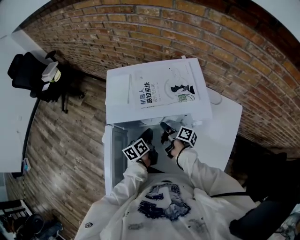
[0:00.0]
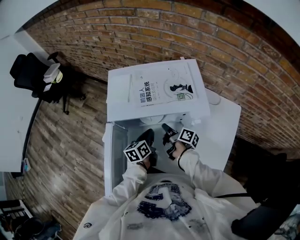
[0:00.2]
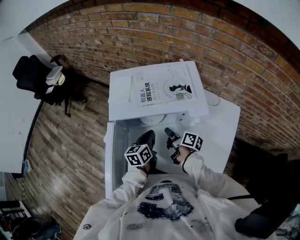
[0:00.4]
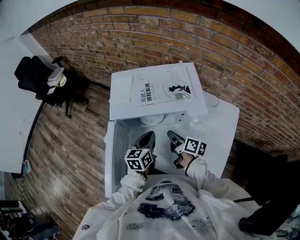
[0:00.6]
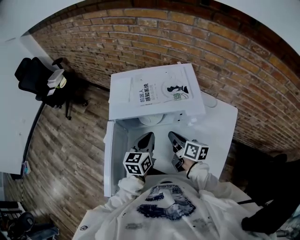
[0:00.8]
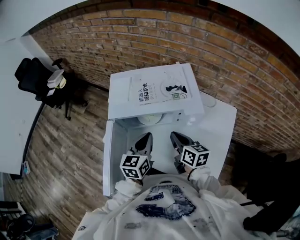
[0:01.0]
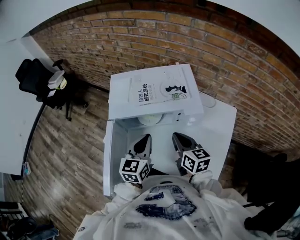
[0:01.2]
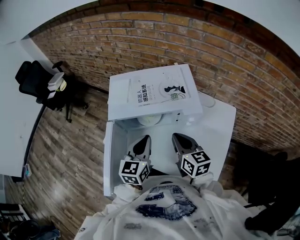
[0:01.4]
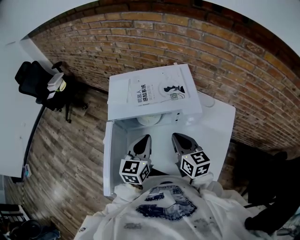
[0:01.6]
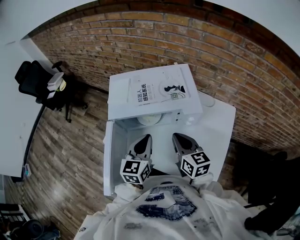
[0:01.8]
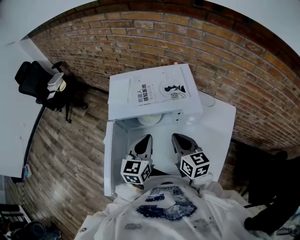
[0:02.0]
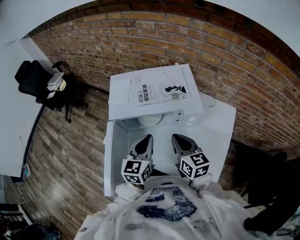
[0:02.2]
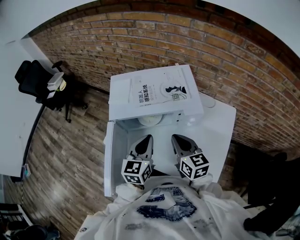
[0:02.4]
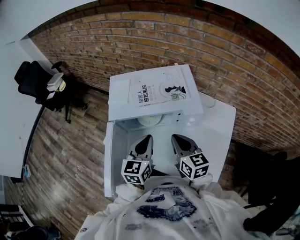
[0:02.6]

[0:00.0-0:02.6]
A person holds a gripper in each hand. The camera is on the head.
0:00.0 to 0:01.2: The left gripper shifts some 20 cm upward, and rotates around the line of its fingers by approximately 40 degrees, clockwise from behind.

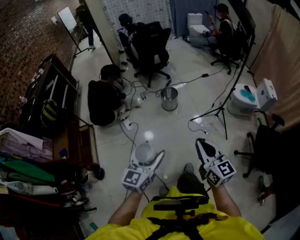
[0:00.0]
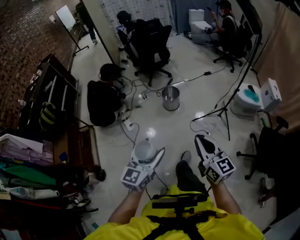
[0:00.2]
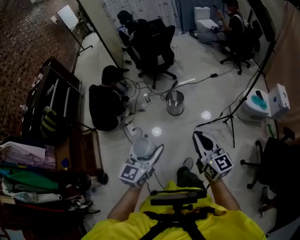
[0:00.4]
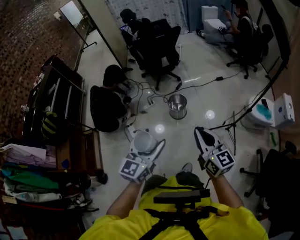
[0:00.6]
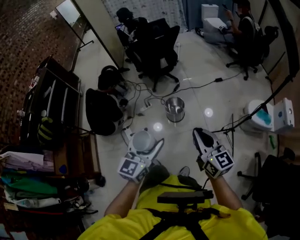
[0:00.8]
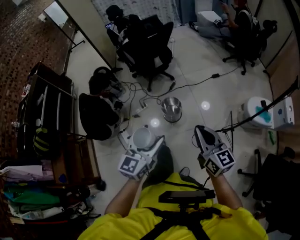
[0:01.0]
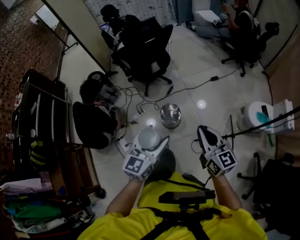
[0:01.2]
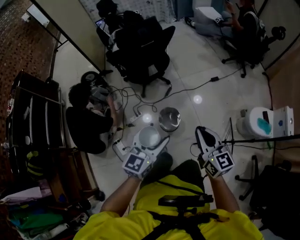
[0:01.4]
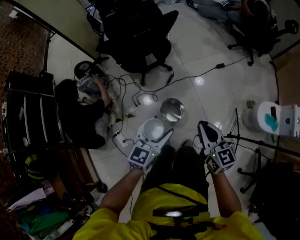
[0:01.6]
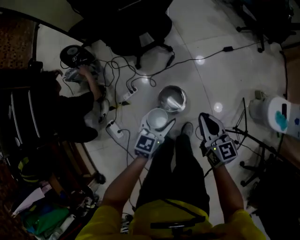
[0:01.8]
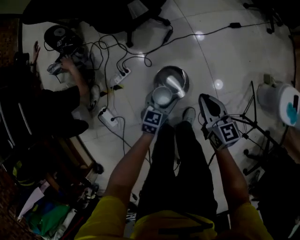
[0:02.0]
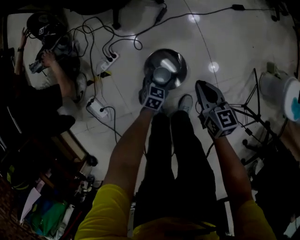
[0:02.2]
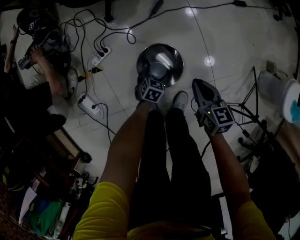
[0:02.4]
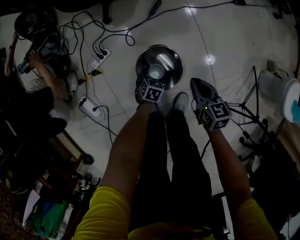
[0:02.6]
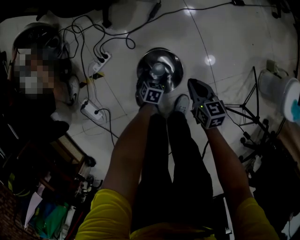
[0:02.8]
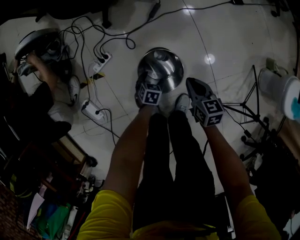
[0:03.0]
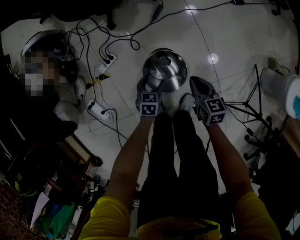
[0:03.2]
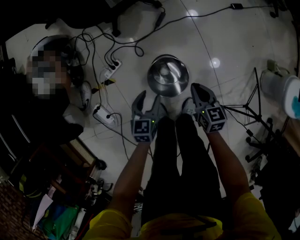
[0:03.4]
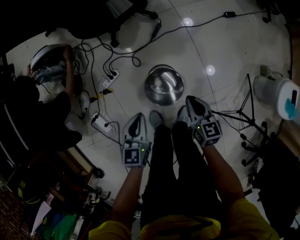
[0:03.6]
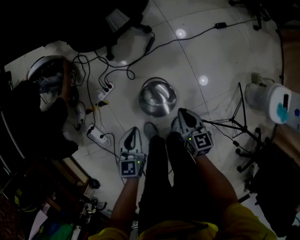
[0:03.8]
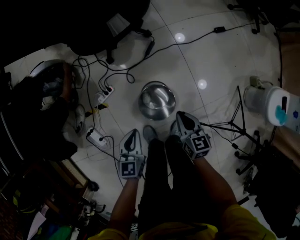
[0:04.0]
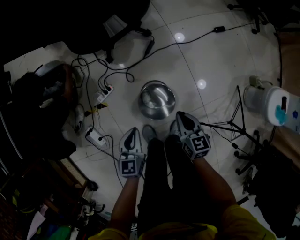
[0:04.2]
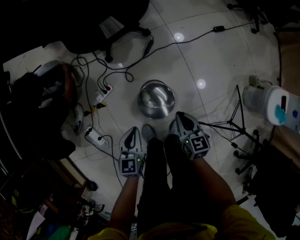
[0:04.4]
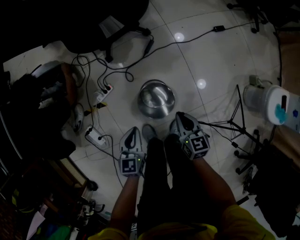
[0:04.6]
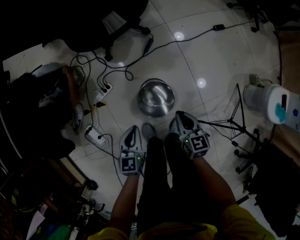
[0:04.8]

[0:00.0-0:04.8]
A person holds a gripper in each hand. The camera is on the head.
0:00.0 to 0:01.6: The two grippers travel together, forward, some 70 cm.
0:01.6 to 0:03.2: The two grippers go roughly 60 cm downward. The left gripper tips its fingers downward by some 40 degrees; the right gripper rotates about 30 degrees.
0:03.2 to 0:04.8: The right gripper moves upward, approximately 10 cm, while the left gripper moves upward, approximately 20 cm, turns by about 20 degrees, and closes up.

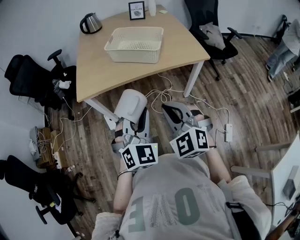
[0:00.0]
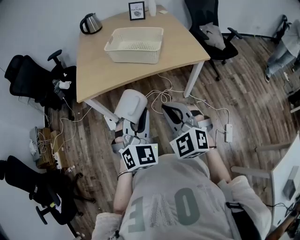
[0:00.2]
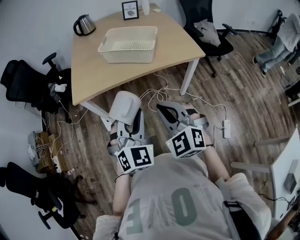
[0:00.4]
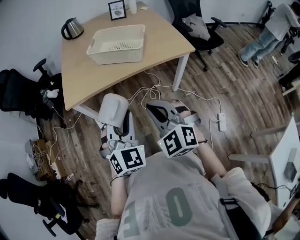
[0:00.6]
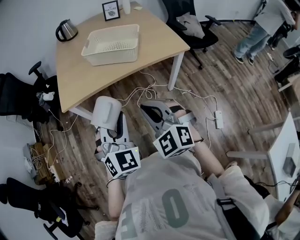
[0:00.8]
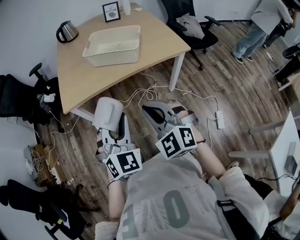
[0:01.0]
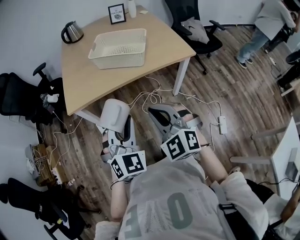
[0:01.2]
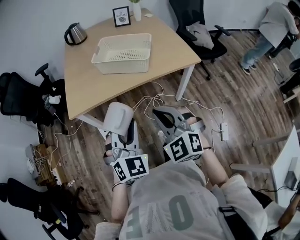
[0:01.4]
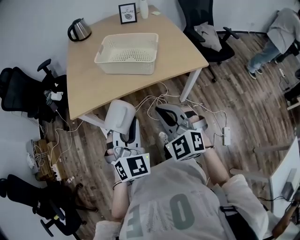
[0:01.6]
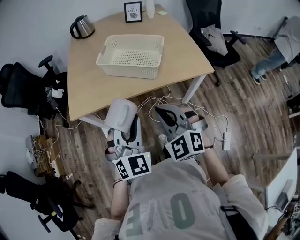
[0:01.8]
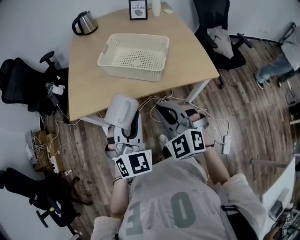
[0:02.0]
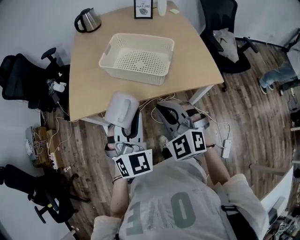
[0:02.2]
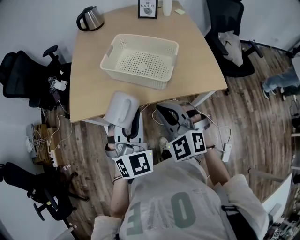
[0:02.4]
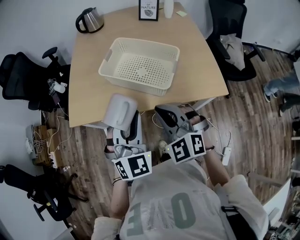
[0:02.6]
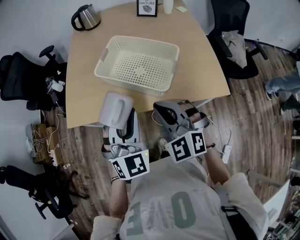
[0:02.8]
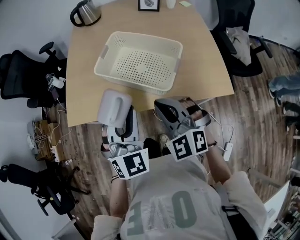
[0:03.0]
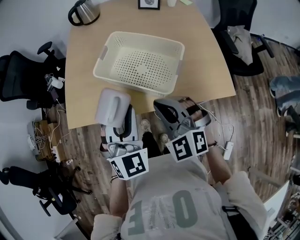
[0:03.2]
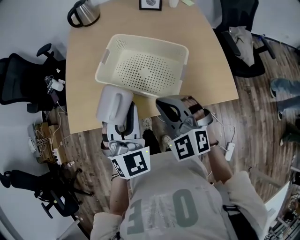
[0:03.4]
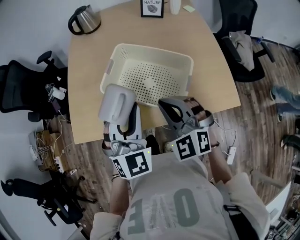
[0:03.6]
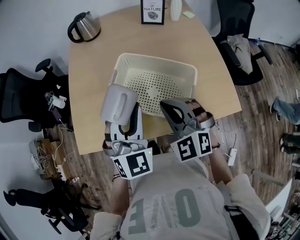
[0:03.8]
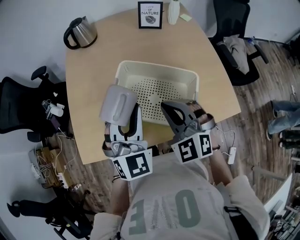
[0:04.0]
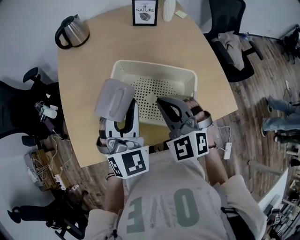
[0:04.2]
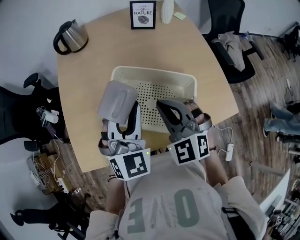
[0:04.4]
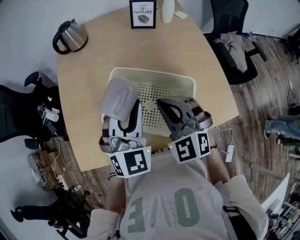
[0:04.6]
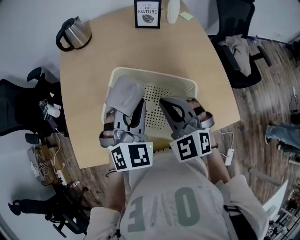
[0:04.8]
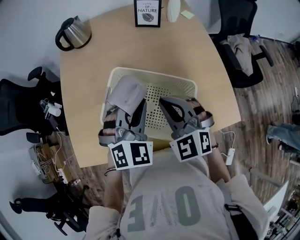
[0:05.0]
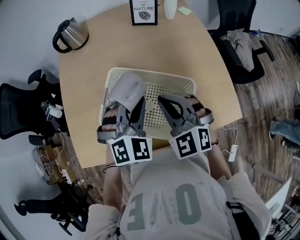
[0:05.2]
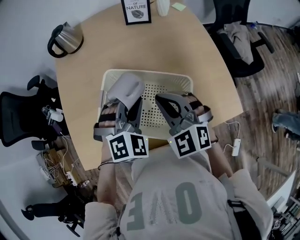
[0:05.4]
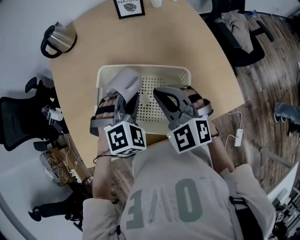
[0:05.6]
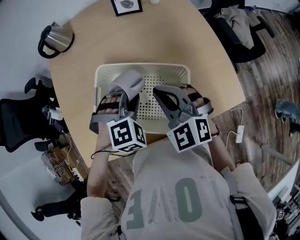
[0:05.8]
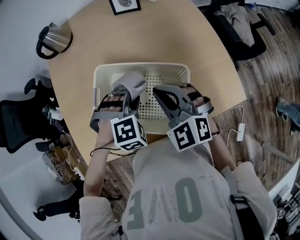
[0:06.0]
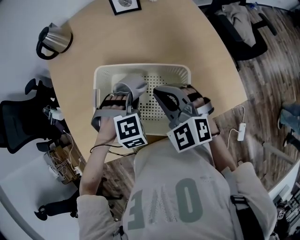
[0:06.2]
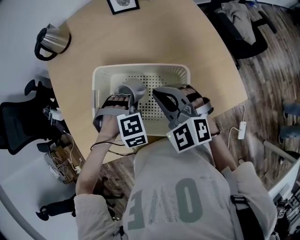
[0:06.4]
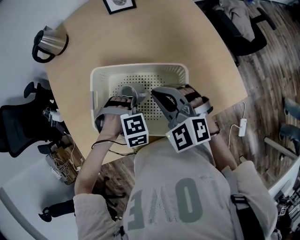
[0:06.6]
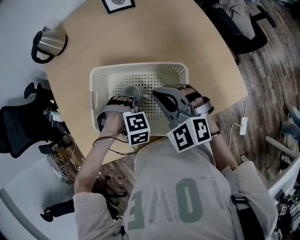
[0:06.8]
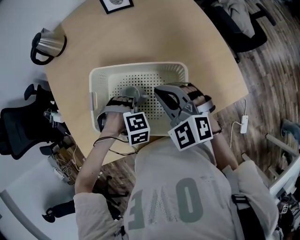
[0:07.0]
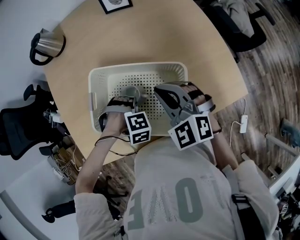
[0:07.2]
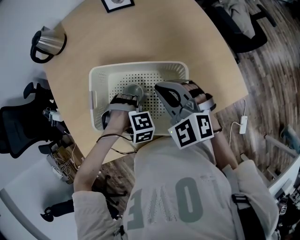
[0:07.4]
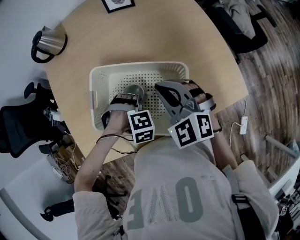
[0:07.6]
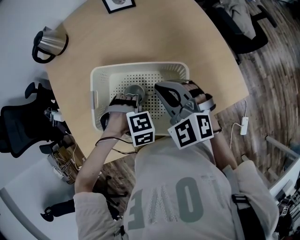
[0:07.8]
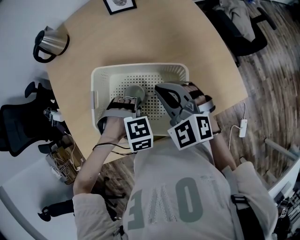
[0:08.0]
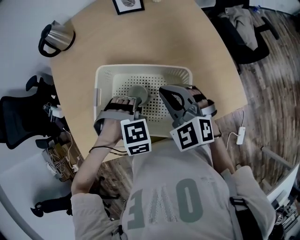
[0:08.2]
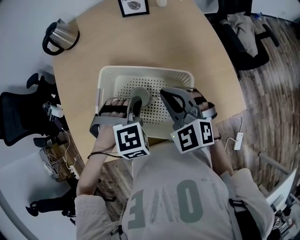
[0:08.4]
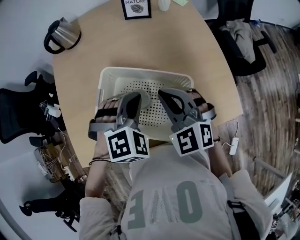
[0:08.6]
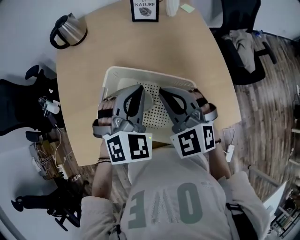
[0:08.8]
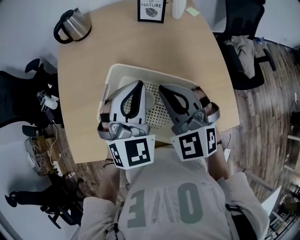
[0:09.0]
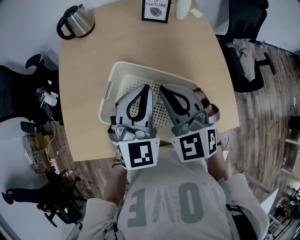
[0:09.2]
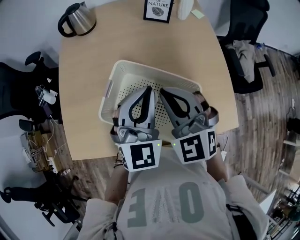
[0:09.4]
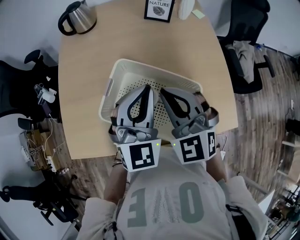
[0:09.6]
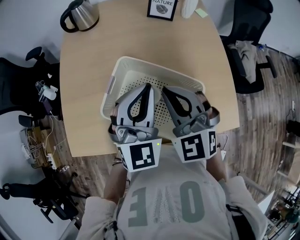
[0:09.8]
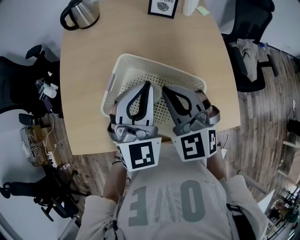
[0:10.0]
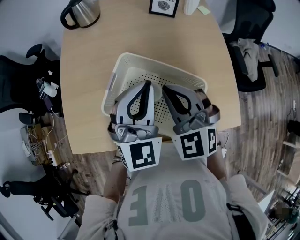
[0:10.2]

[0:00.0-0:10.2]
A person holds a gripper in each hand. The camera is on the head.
0:00.0 to 0:01.4: The grippers stay close to where they were, moving slightly.
0:01.4 to 0:03.0: The two grippers go some 30 cm forward.
0:03.0 to 0:04.4: Both grippers move forward, approximately 20 cm.
0:04.4 to 0:05.8: The left gripper moves downward and to the right, roughly 15 cm, and points its fingers roughly 40 degrees further downward. The right gripper moves to the right, approximately 5 cm.
0:05.8 to 0:07.2: The left gripper goes some 15 cm downward, and changes its angle by some 40 degrees.
0:07.2 to 0:08.8: The right gripper shifts some 5 cm upward; the left gripper moves upward, some 25 cm, and angles its fingers upward, by about 50 degrees.
0:08.8 to 0:10.2: The left gripper shifts by approximately 5 cm, and changes its angle by some 30 degrees.

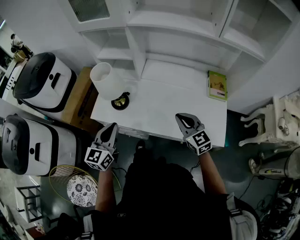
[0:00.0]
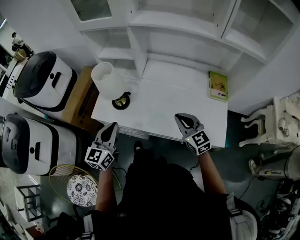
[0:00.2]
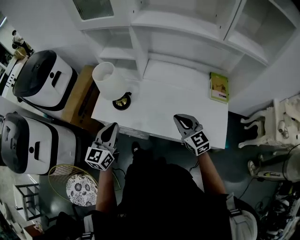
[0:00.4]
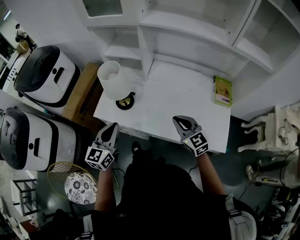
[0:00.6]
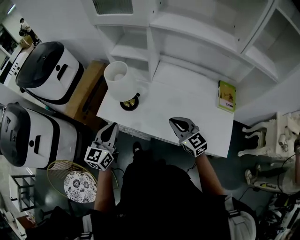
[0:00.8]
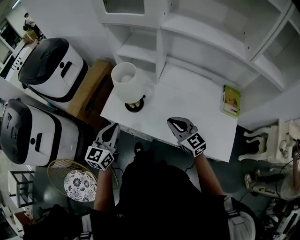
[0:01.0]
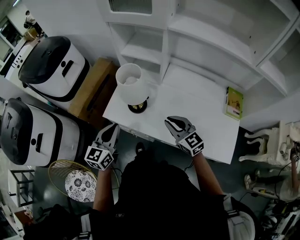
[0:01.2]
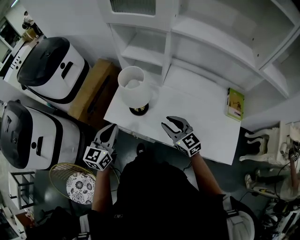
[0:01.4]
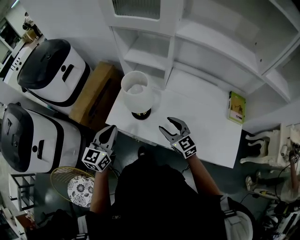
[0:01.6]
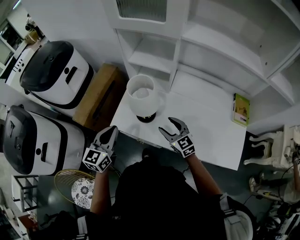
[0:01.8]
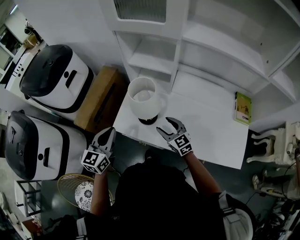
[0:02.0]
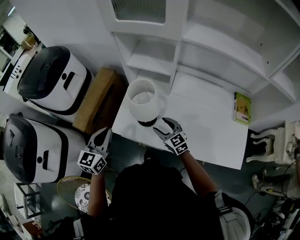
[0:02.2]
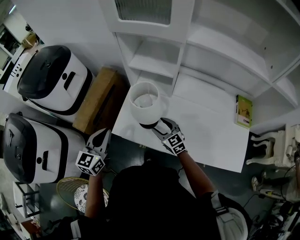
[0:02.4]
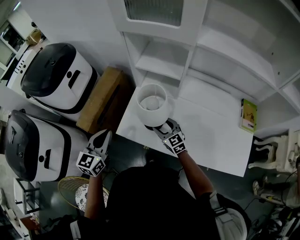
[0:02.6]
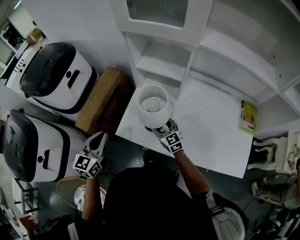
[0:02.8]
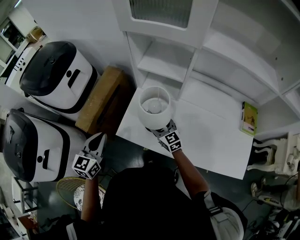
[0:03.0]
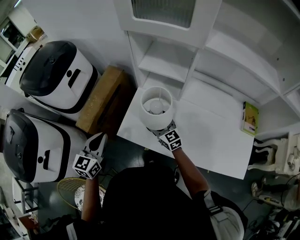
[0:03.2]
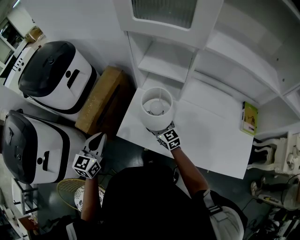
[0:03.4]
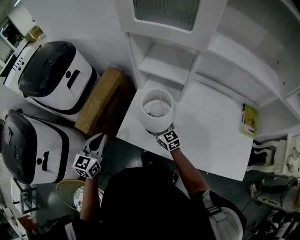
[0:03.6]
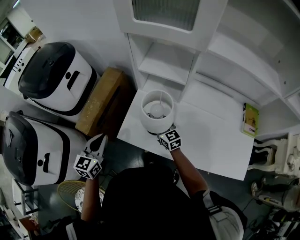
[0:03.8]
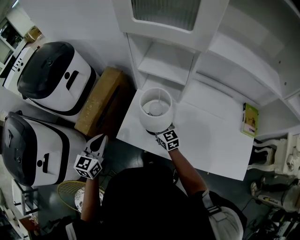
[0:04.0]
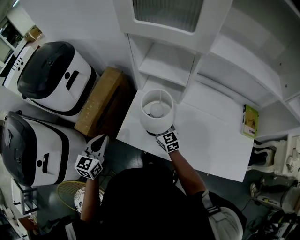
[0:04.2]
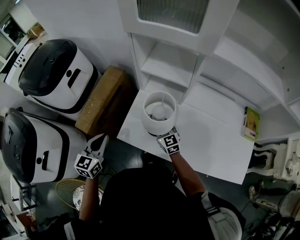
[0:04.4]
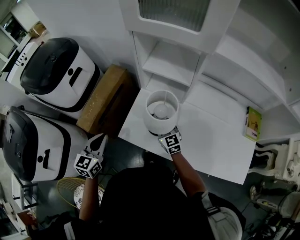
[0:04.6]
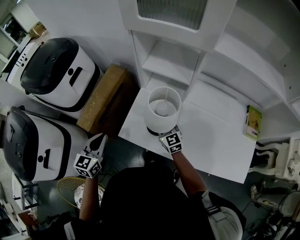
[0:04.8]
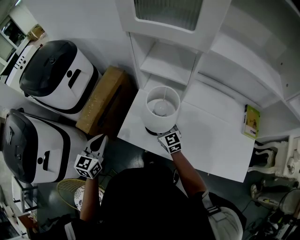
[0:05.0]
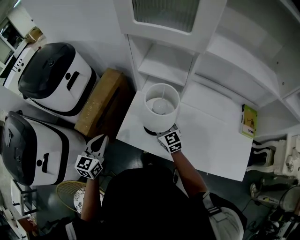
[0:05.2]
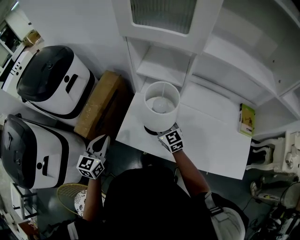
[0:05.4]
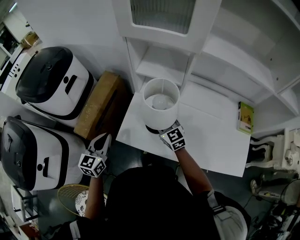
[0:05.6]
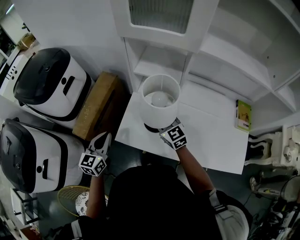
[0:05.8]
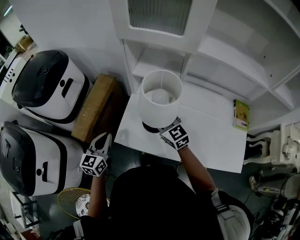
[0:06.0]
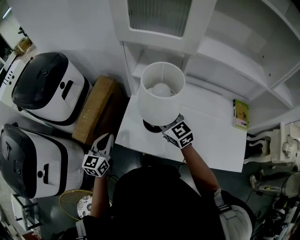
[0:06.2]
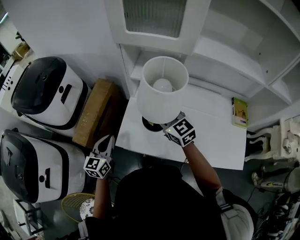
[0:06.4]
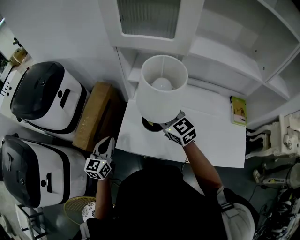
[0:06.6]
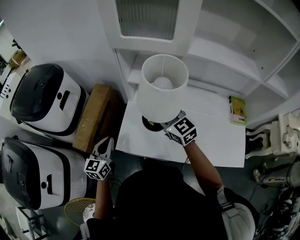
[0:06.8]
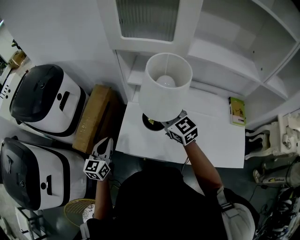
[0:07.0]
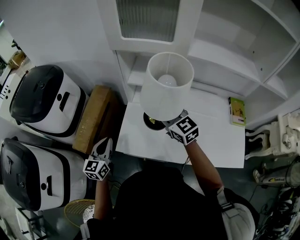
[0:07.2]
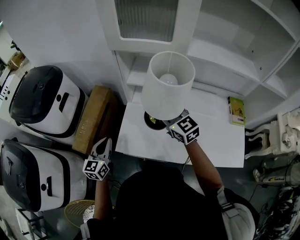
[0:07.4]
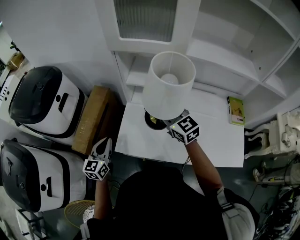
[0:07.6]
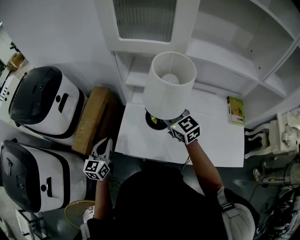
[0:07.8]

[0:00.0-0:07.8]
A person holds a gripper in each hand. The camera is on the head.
0:00.0 to 0:01.6: The two grippers go approximately 20 cm to the left and forward. The right gripper opens up.
0:01.6 to 0:03.2: The right gripper heads forward, to the left and downward, covering approximately 20 cm. The left gripper moves to the left and forward, roughly 15 cm.
0:03.2 to 0:04.6: The right gripper closes up.
0:04.6 to 0:06.2: The right gripper travels upward by about 15 cm.
0:06.2 to 0:07.8: The right gripper ends up roughly 5 cm from where it was.
